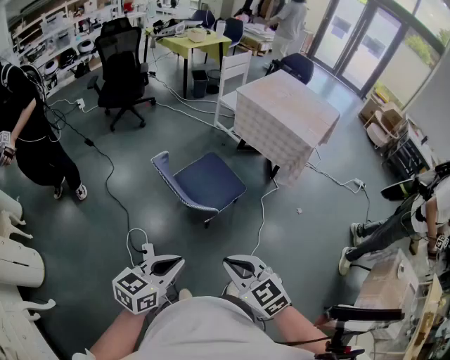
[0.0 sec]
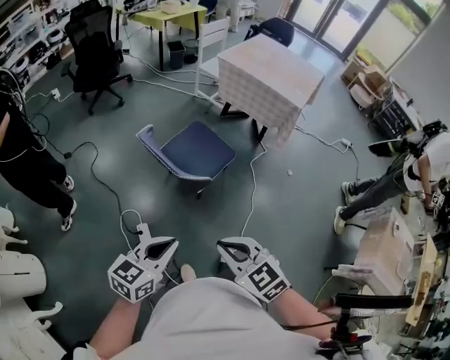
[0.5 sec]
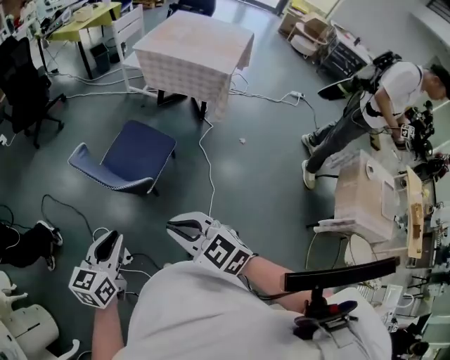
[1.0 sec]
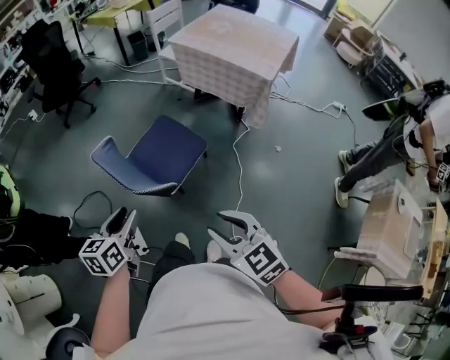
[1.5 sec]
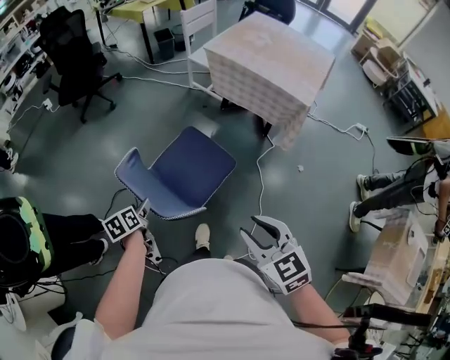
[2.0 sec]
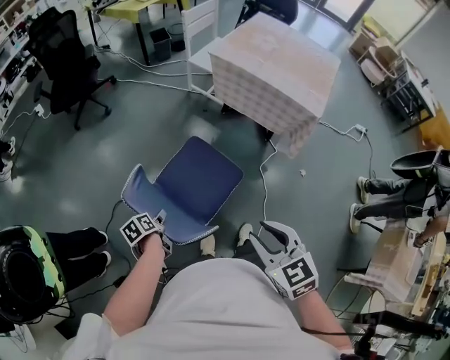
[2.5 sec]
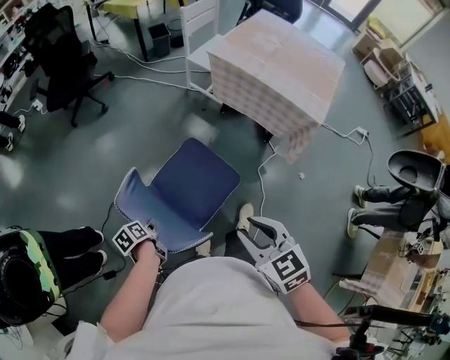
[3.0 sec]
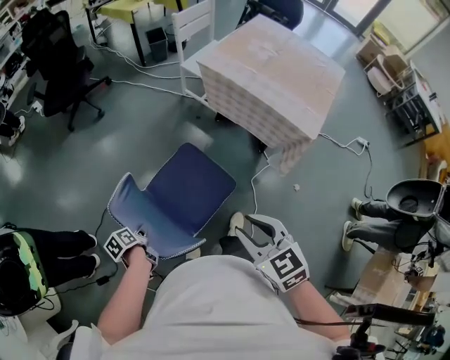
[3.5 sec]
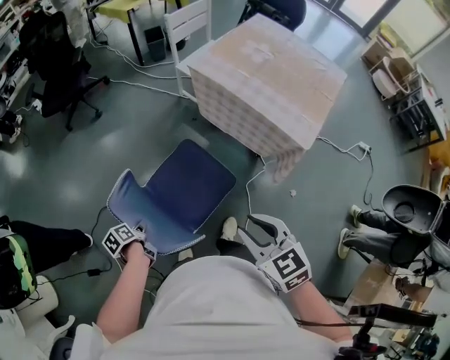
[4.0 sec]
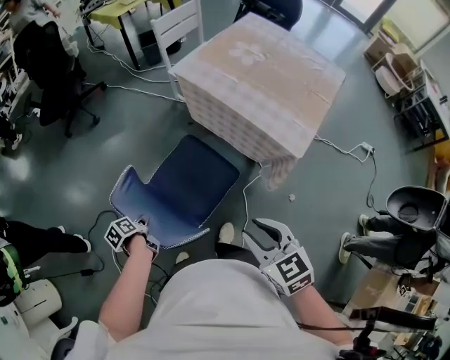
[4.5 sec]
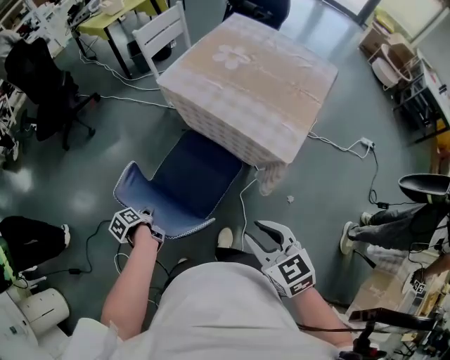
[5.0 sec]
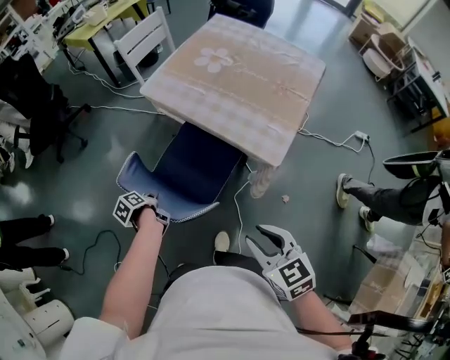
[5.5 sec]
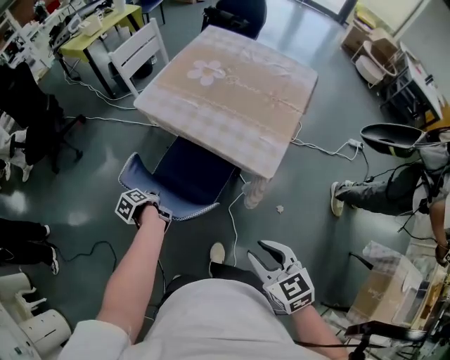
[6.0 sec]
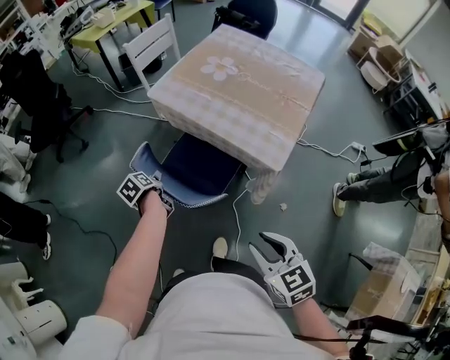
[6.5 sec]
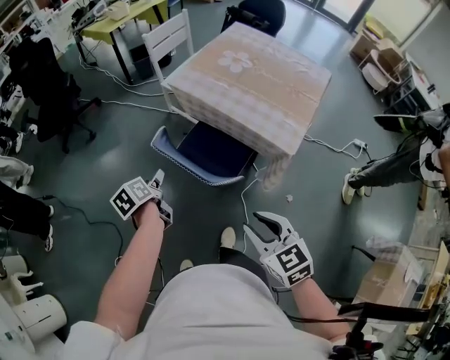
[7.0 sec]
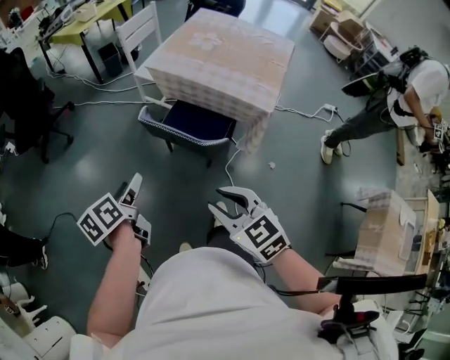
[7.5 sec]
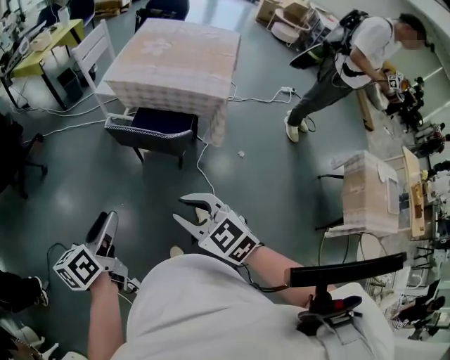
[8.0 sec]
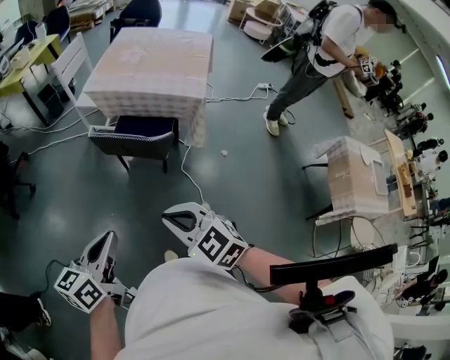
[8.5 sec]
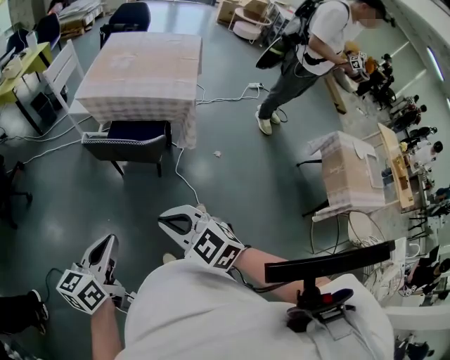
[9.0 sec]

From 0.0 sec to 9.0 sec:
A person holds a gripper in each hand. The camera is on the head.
From 0.0 sec to 2.0 sec: The right gripper moves forward and to the right, approximately 25 cm, and opens. The left gripper is displaced forward and downward by about 40 cm, turns by approximately 50 degrees, and opens its fingers.
From 2.0 sec to 4.5 sec: The right gripper goes about 35 cm forward and to the right. Meanwhile the left gripper is displaced to the right and forward by some 25 cm, changes its angle by about 30 degrees, and closes.
From 4.5 sec to 7.0 sec: The right gripper reaches approximately 15 cm to the right, then returns. The left gripper travels upward, forward and to the right by about 20 cm, changes its angle by approximately 20 degrees, and opens.
From 7.0 sec to 9.0 sec: The left gripper changes place by some 35 cm, turns by some 60 degrees, and closes. Meanwhile the right gripper changes place by some 30 cm, and closes its fingers.

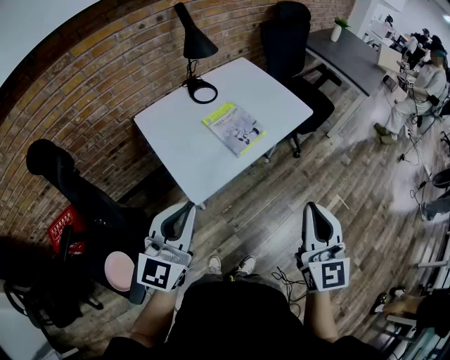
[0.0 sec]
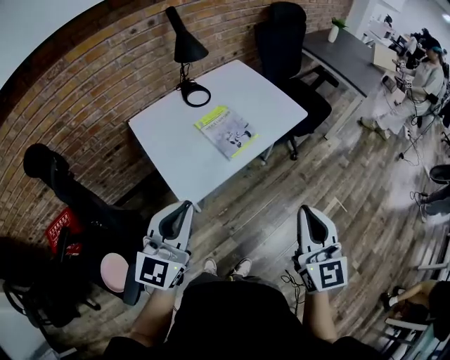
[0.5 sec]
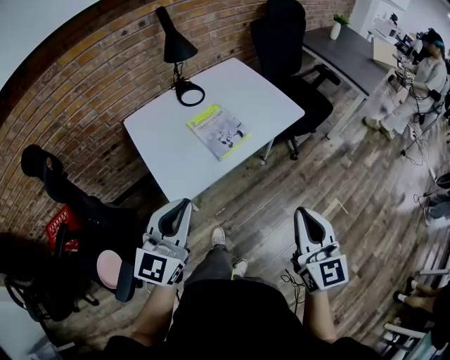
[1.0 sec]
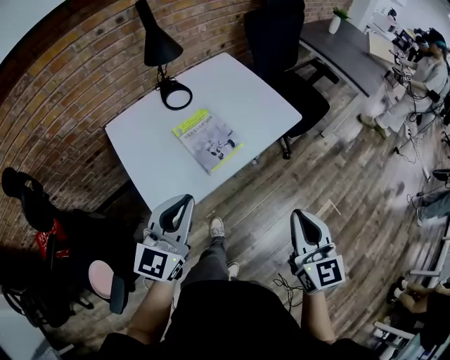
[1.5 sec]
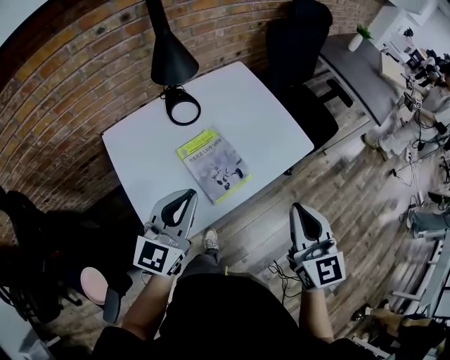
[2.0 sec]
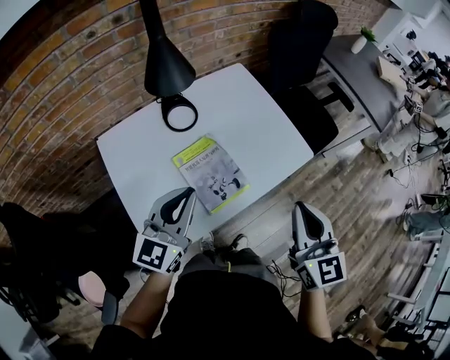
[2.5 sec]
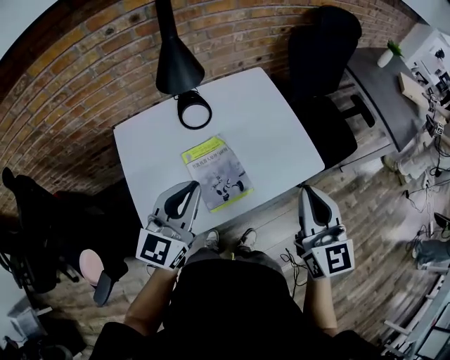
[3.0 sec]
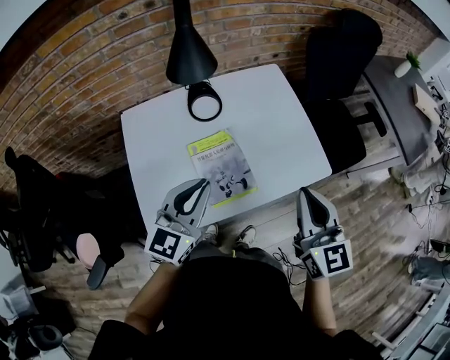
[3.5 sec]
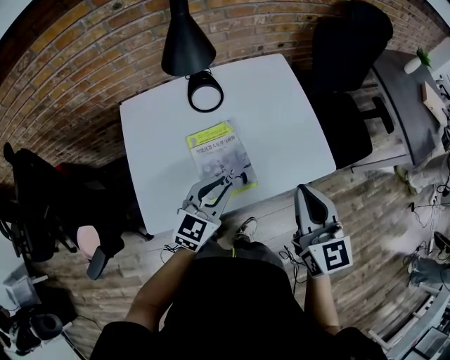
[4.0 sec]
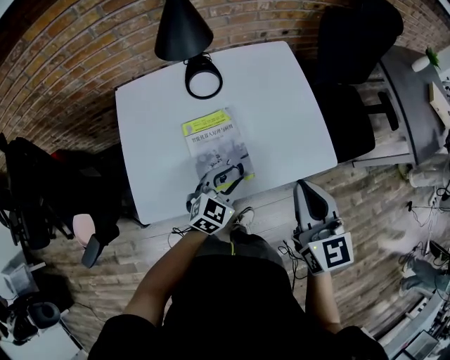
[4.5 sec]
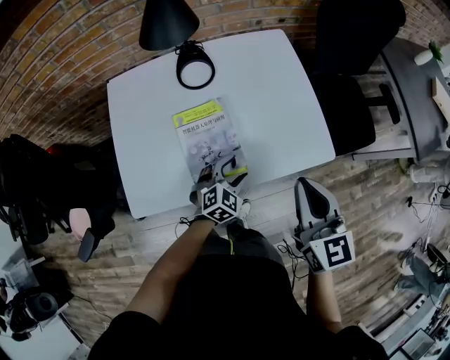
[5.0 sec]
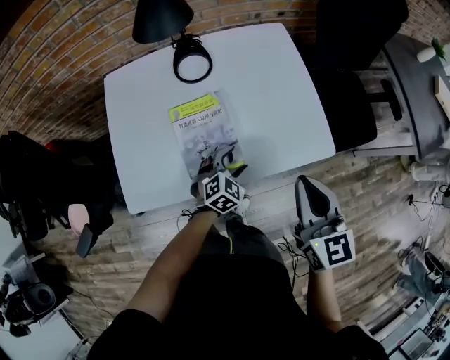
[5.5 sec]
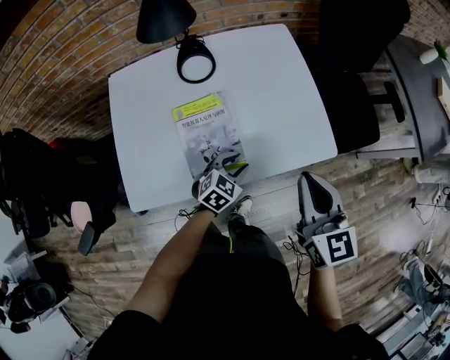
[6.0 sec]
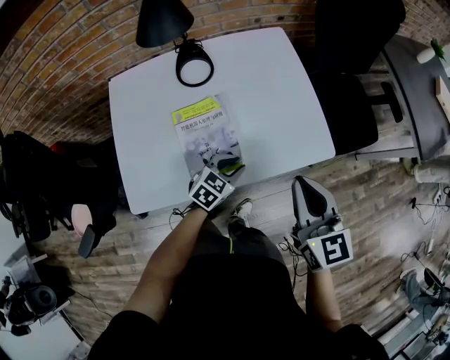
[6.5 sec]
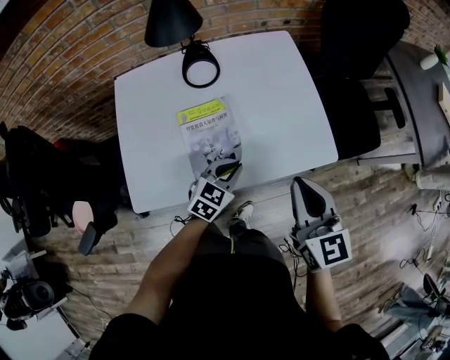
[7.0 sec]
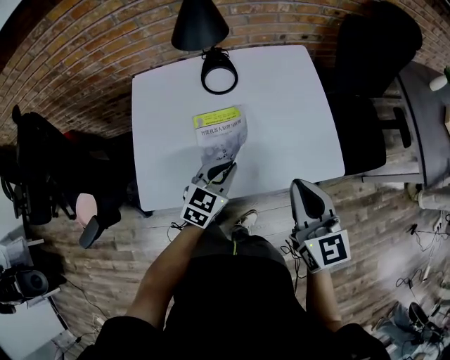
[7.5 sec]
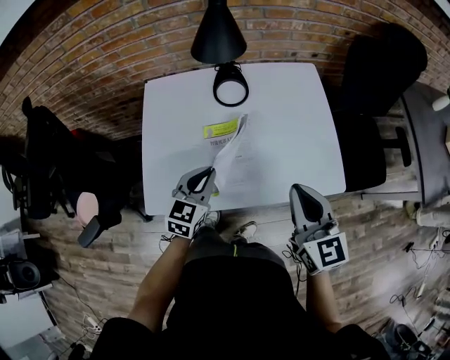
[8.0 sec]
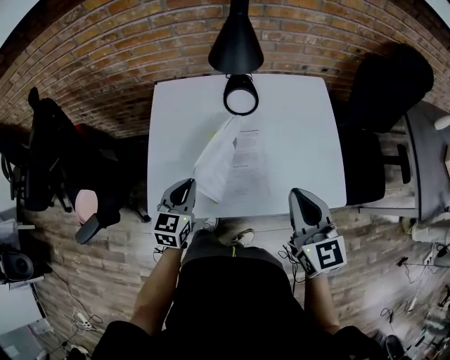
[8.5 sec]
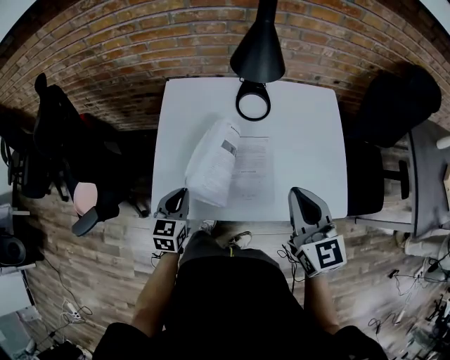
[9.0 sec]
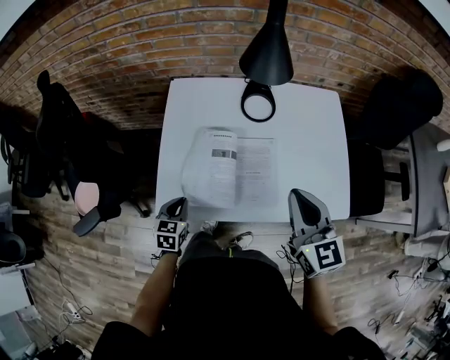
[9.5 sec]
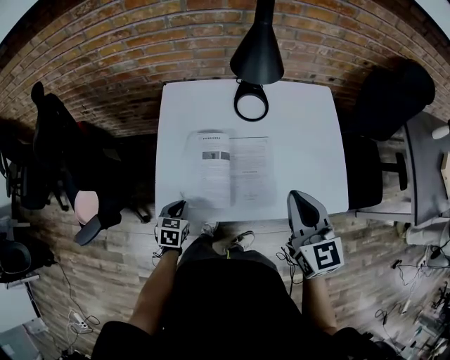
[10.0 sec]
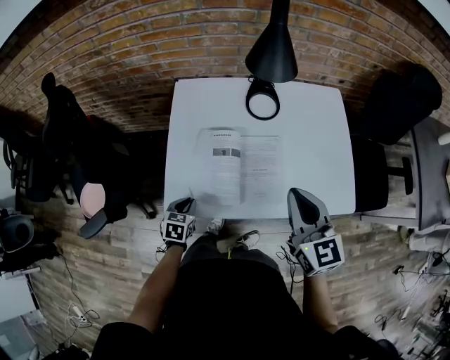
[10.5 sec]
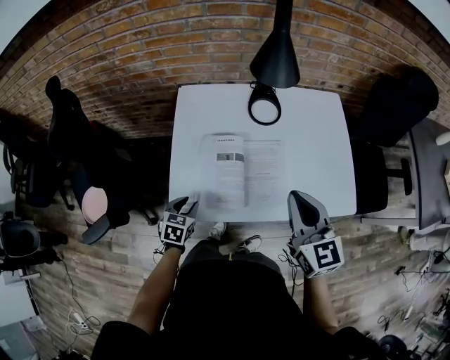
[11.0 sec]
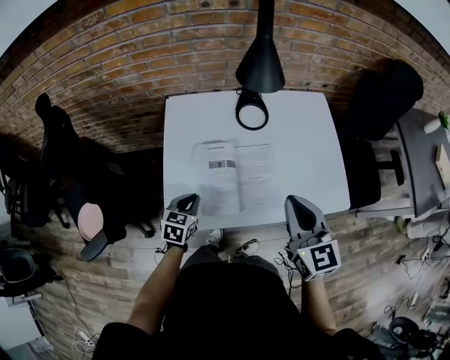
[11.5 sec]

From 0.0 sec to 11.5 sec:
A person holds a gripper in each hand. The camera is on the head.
From 0.0 sec to 2.0 sec: The two grippers go about 30 cm forward.
From 2.0 sec to 4.0 sec: The right gripper shifts about 15 cm forward; the left gripper is displaced downward, to the right and forward by some 20 cm.
From 4.0 sec to 6.0 sec: The right gripper moves to the right and downward, roughly 10 cm. Meanwhile the left gripper heads downward and to the right, covering some 20 cm, turns by roughly 30 degrees, and opens up.
From 6.0 sec to 7.5 sec: The left gripper heads upward and to the left, covering some 15 cm, swivels roughly 20 degrees, and closes up.
From 7.5 sec to 9.5 sec: The left gripper goes some 25 cm to the left, and changes its angle by roughly 40 degrees; the right gripper travels to the left and forward by some 10 cm.
From 9.5 sec to 11.5 sec: The left gripper changes place by roughly 5 cm, and opens and closes again.

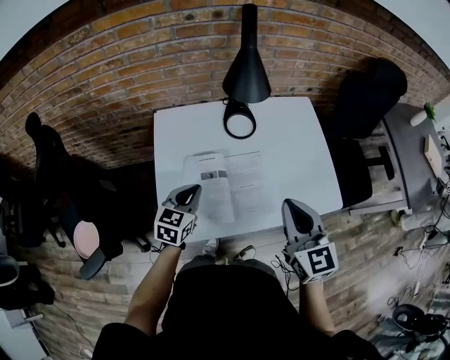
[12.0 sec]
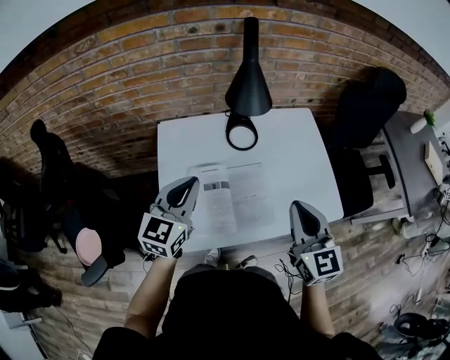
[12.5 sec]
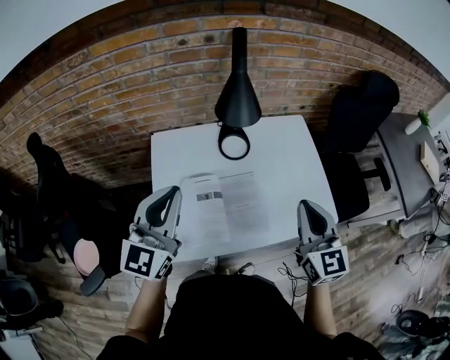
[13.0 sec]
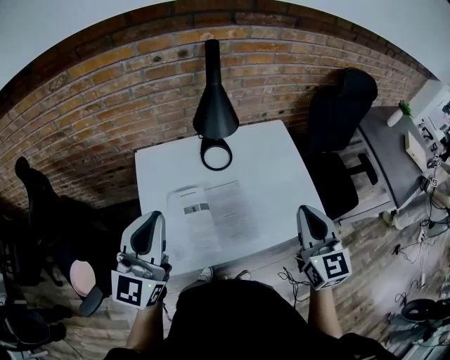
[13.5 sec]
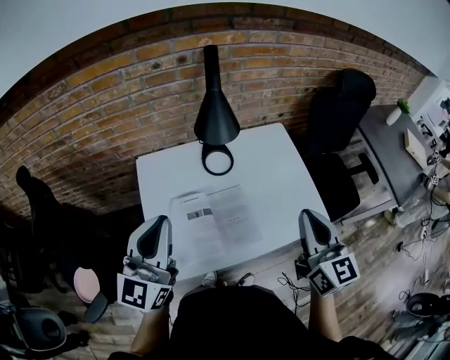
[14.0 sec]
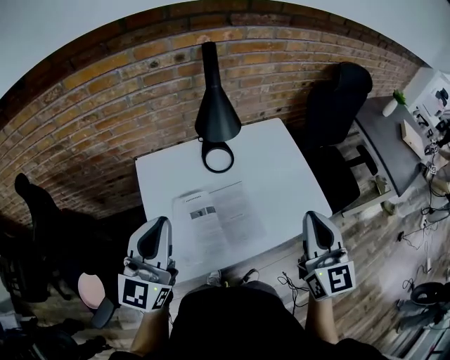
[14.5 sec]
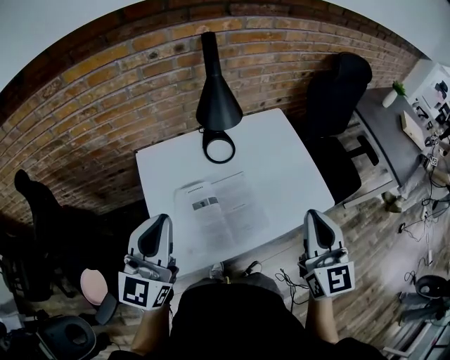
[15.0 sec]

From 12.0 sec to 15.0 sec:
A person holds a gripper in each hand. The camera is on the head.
From 12.0 sec to 13.5 sec: The left gripper shifts some 25 cm upward, and angles its fingers upward, by some 40 degrees. Meanwhile the right gripper travels to the right and upward by about 10 cm.
From 13.5 sec to 15.0 sec: The right gripper goes about 5 cm backward.

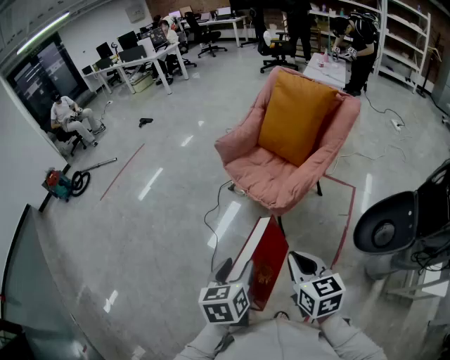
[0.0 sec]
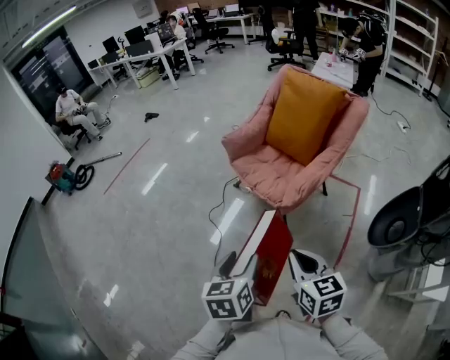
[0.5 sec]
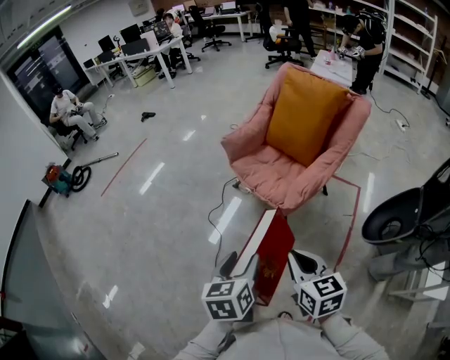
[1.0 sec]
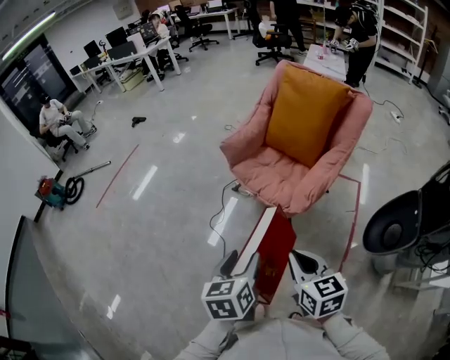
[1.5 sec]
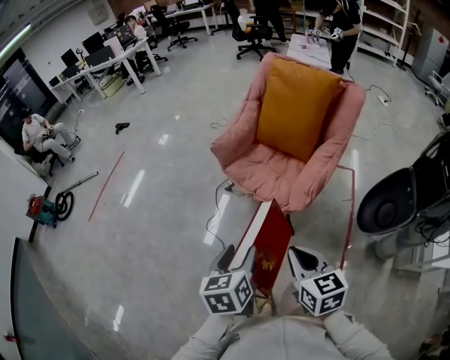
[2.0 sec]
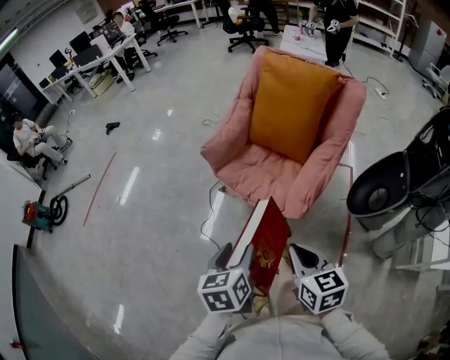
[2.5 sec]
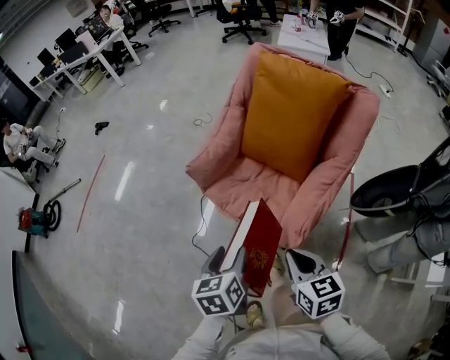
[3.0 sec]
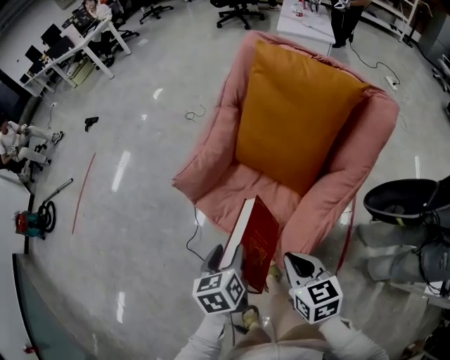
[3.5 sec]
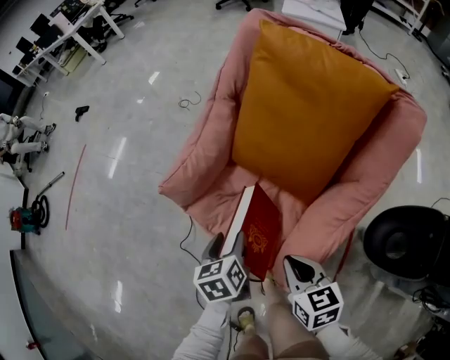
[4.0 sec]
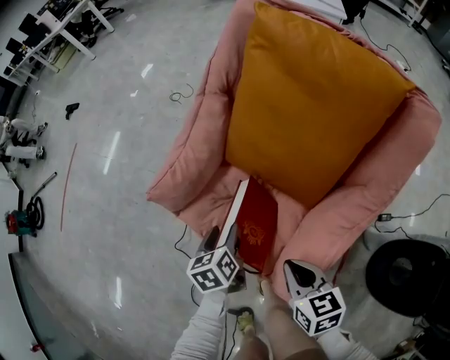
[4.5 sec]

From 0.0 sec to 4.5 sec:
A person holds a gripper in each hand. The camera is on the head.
From 0.0 sec to 2.0 sec: The grippers both shift forward and to the left by about 15 cm.
From 2.0 sec to 4.5 sec: The right gripper goes approximately 40 cm forward, downward and to the right, while the left gripper goes roughly 50 cm forward and downward.
